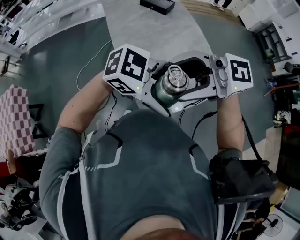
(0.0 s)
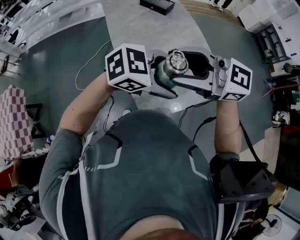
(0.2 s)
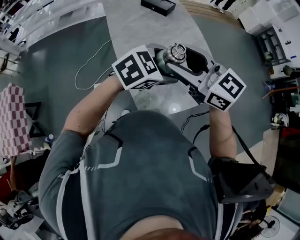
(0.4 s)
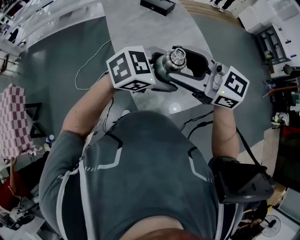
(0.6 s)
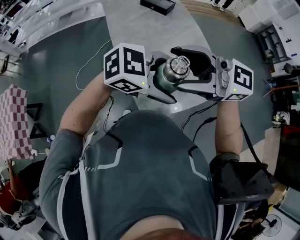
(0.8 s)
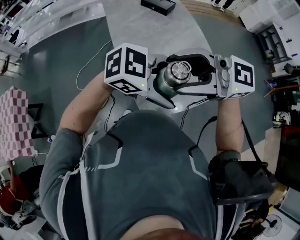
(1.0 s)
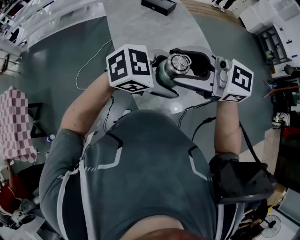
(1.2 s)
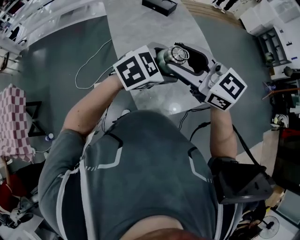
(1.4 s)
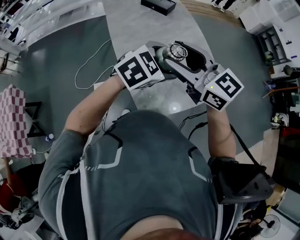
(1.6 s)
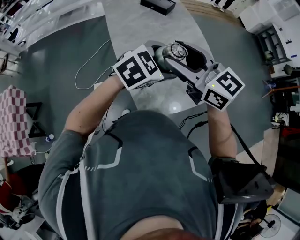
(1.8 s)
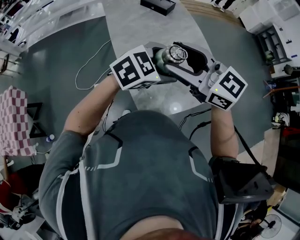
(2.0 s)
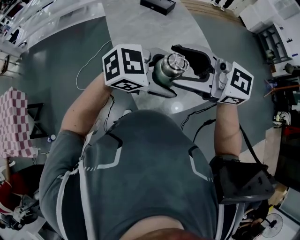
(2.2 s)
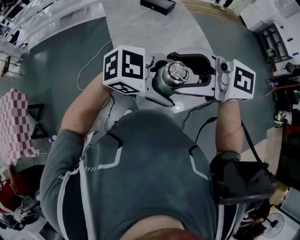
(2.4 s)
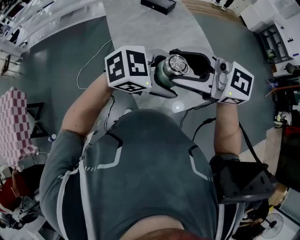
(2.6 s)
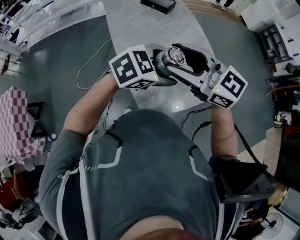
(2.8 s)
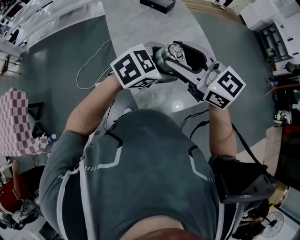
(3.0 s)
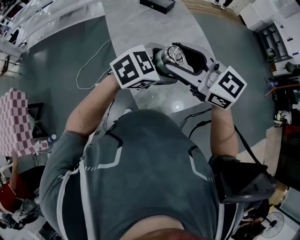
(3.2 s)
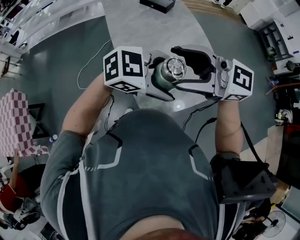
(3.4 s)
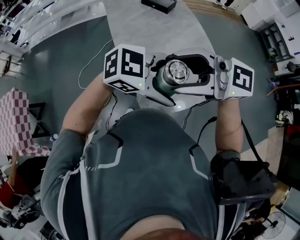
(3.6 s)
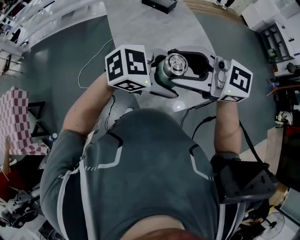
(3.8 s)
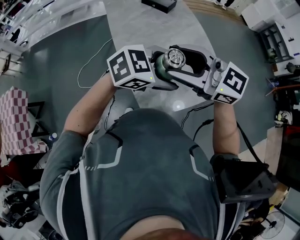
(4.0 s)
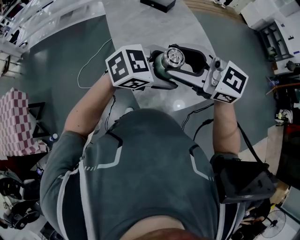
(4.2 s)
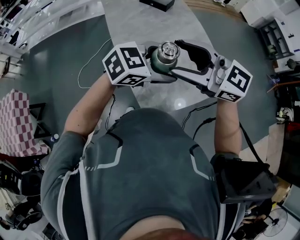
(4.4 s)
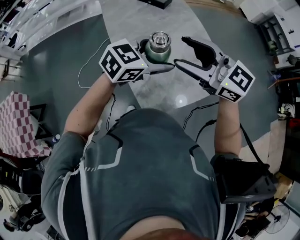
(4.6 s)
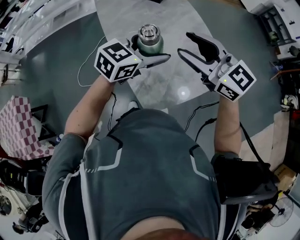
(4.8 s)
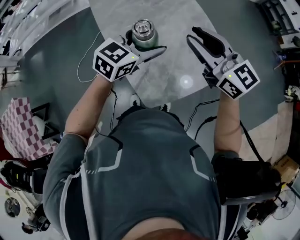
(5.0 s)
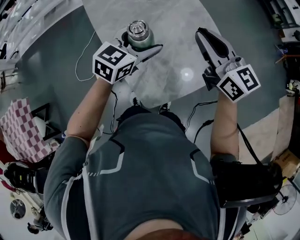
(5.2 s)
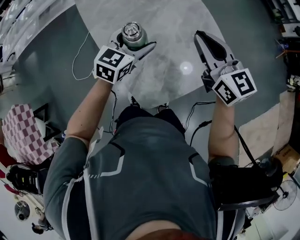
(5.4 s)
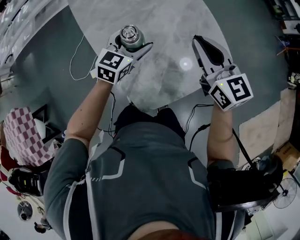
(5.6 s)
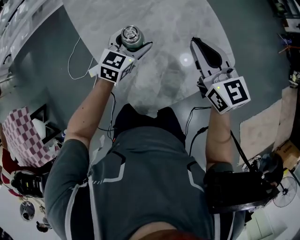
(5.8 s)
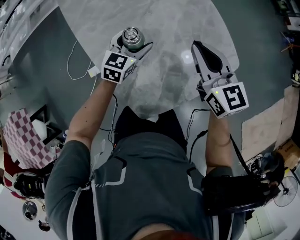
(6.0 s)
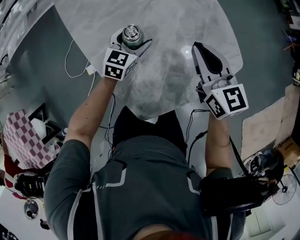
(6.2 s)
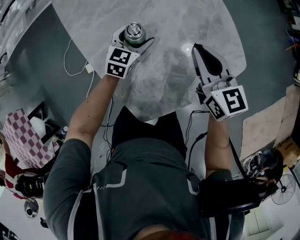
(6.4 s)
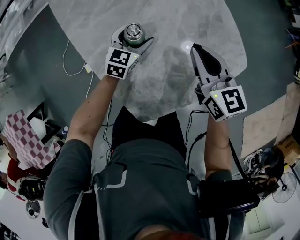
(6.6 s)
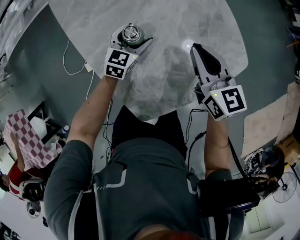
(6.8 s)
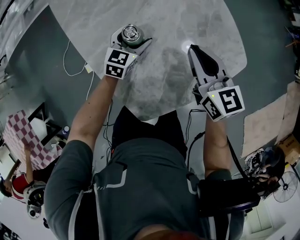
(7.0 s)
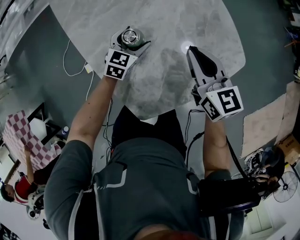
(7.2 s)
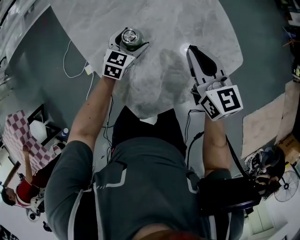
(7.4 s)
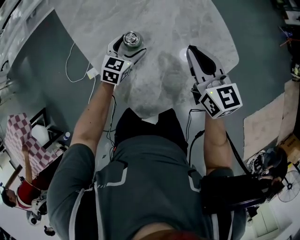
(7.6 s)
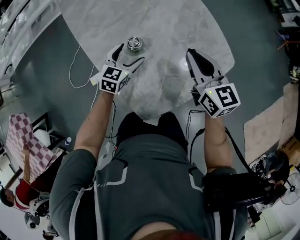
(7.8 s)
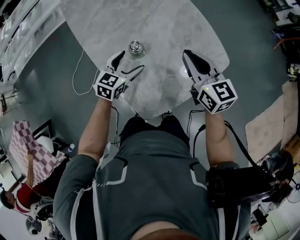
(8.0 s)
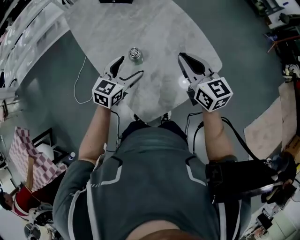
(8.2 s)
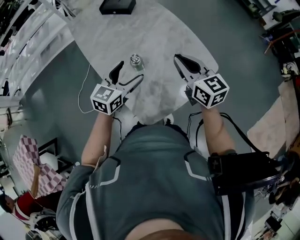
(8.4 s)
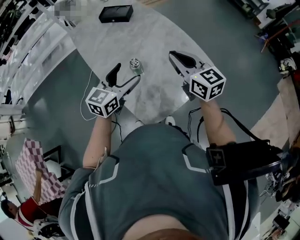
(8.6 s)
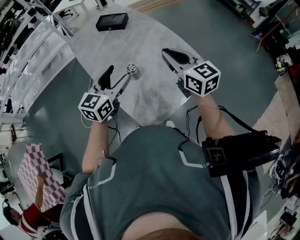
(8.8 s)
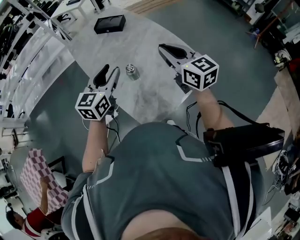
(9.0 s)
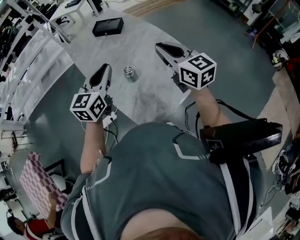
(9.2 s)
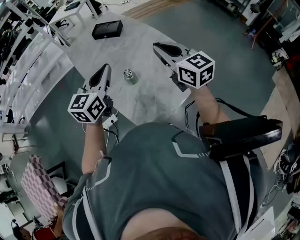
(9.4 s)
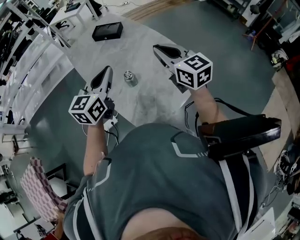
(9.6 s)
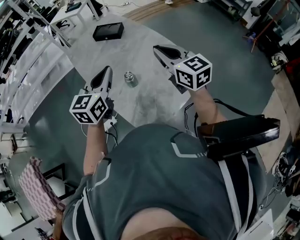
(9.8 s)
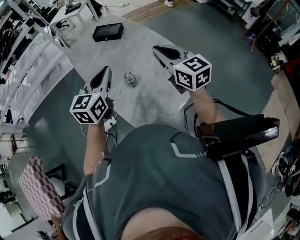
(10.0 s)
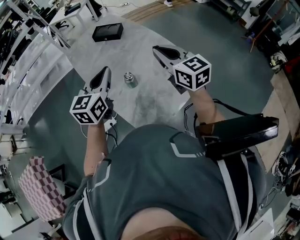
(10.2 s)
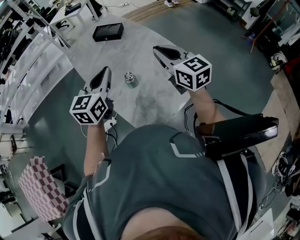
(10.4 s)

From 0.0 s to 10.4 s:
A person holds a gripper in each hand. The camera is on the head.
From 0.0 s to 1.4 s: The left gripper goes up and down, some 5 cm each way, reversing 2 times, and changes its angle by about 50 degrees. The right gripper moves roughly 10 cm, and rotates roughly 40 degrees.
From 4.4 s to 6.0 s: The right gripper ends up roughly 35 cm from where it was, changes its angle by about 50 degrees, and closes its fingers, while the left gripper goes some 30 cm downward, and turns by some 30 degrees.
From 6.0 s to 7.4 s: The grippers both shift downward by roughly 10 cm.
From 7.4 s to 9.0 s: The grippers both shift upward by about 35 cm. The left gripper changes its angle by roughly 20 degrees, and closes.
From 9.0 s to 10.4 s: The left gripper closes up.

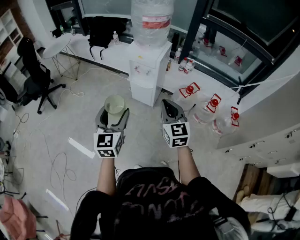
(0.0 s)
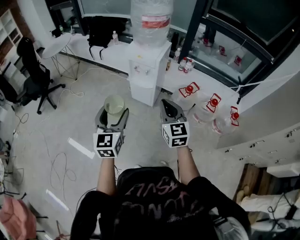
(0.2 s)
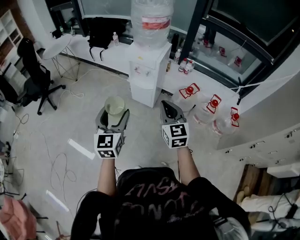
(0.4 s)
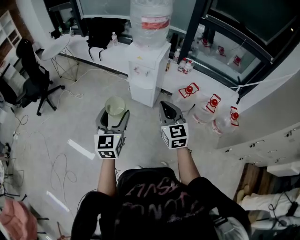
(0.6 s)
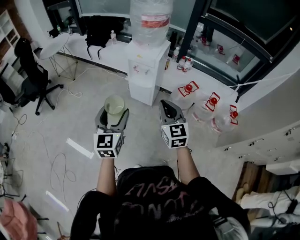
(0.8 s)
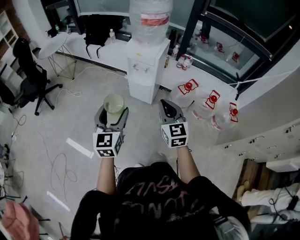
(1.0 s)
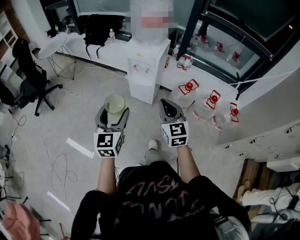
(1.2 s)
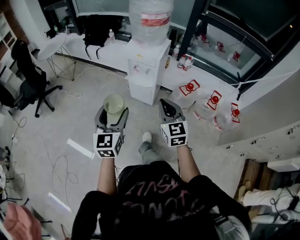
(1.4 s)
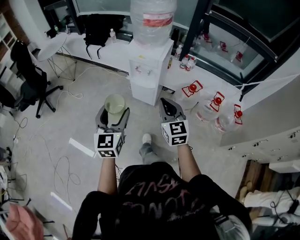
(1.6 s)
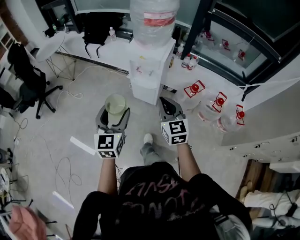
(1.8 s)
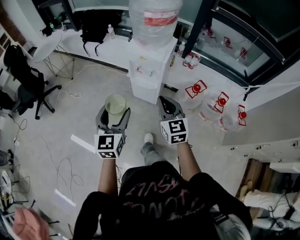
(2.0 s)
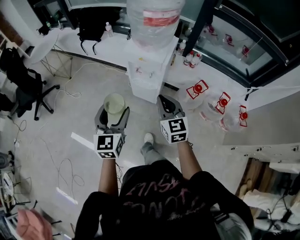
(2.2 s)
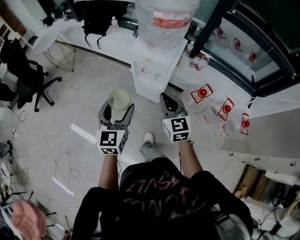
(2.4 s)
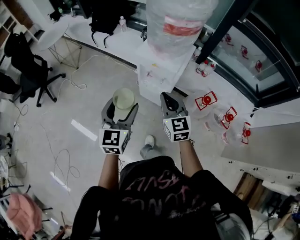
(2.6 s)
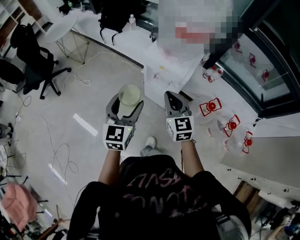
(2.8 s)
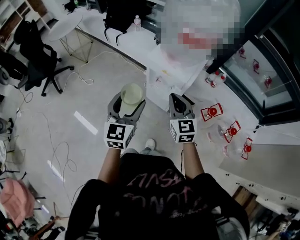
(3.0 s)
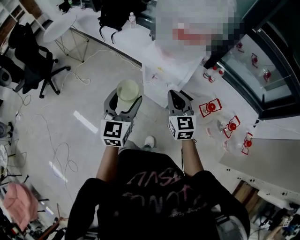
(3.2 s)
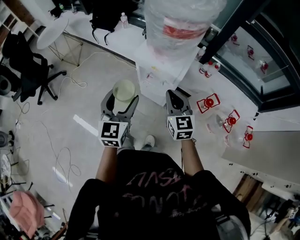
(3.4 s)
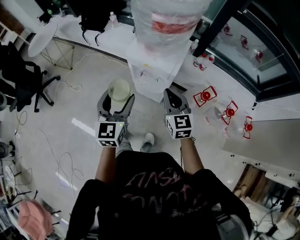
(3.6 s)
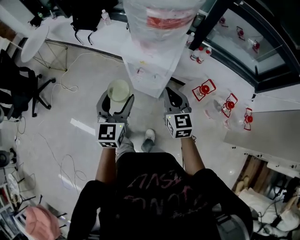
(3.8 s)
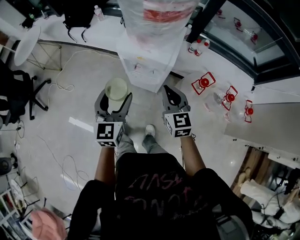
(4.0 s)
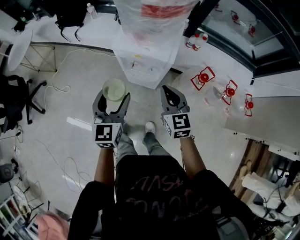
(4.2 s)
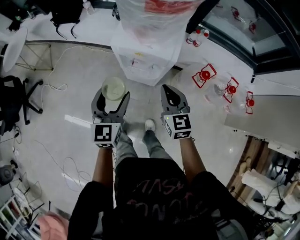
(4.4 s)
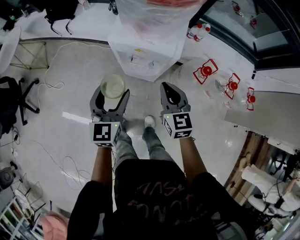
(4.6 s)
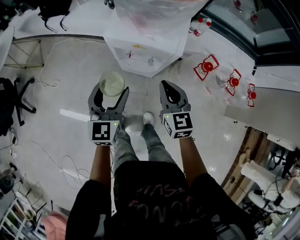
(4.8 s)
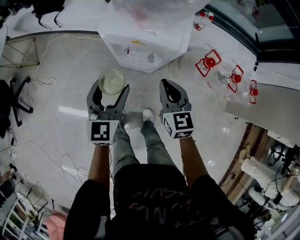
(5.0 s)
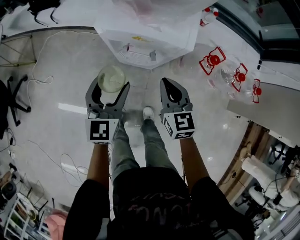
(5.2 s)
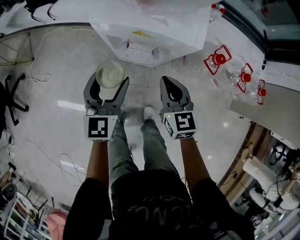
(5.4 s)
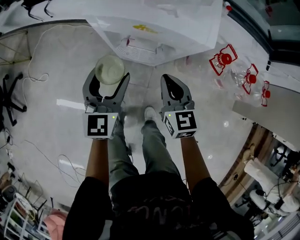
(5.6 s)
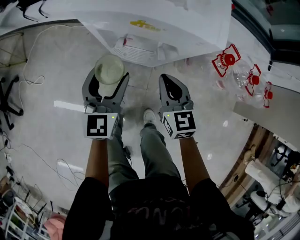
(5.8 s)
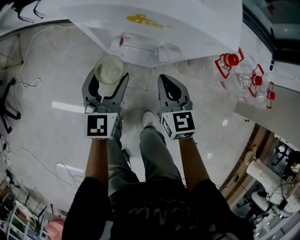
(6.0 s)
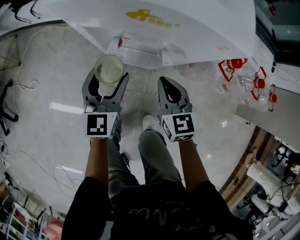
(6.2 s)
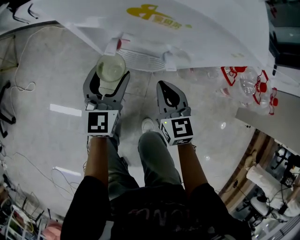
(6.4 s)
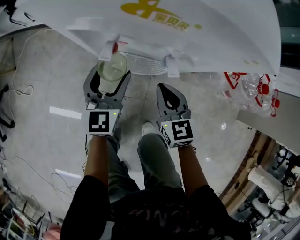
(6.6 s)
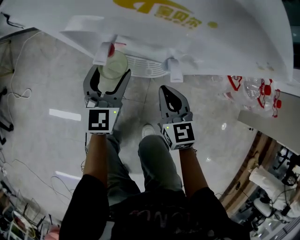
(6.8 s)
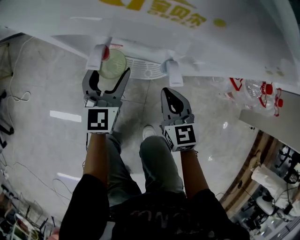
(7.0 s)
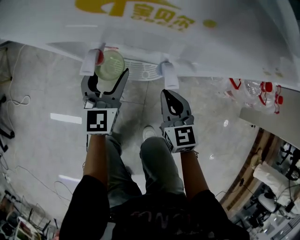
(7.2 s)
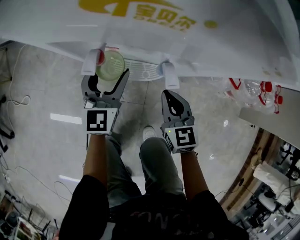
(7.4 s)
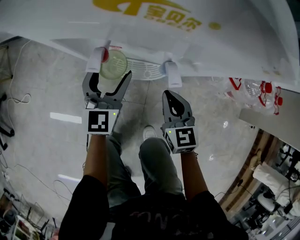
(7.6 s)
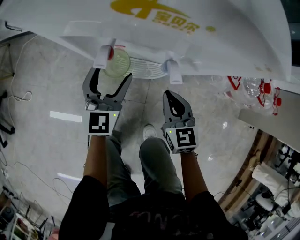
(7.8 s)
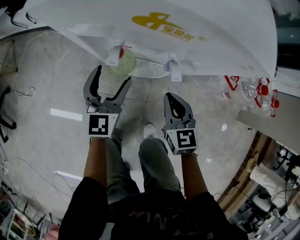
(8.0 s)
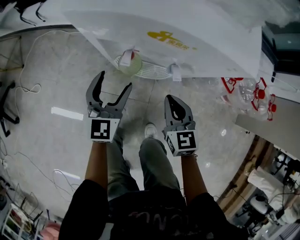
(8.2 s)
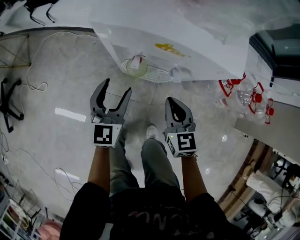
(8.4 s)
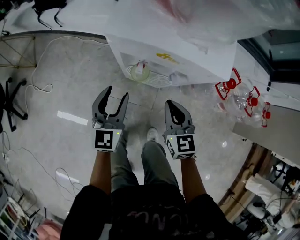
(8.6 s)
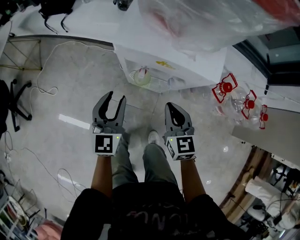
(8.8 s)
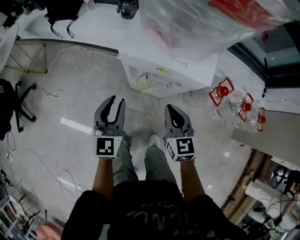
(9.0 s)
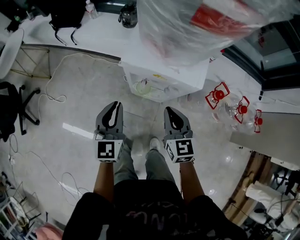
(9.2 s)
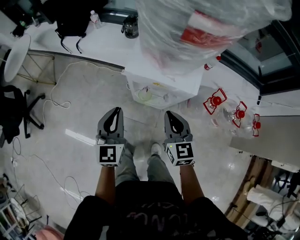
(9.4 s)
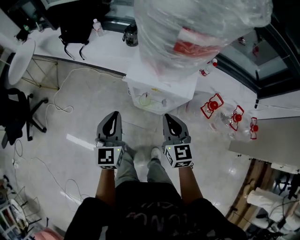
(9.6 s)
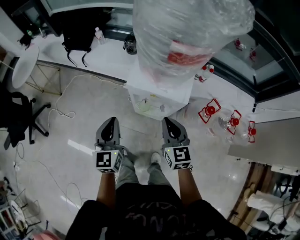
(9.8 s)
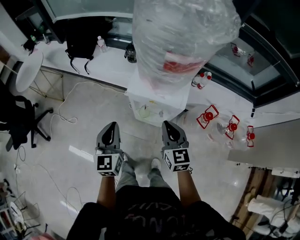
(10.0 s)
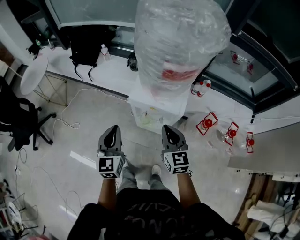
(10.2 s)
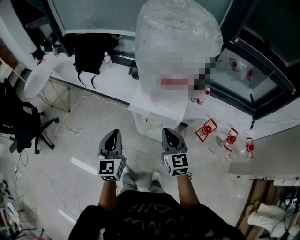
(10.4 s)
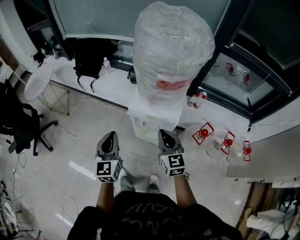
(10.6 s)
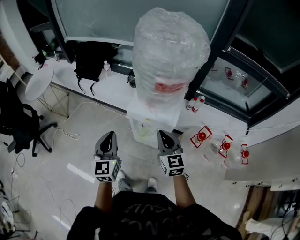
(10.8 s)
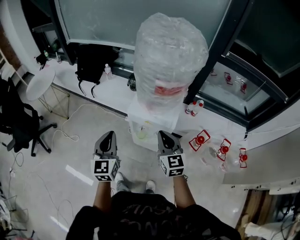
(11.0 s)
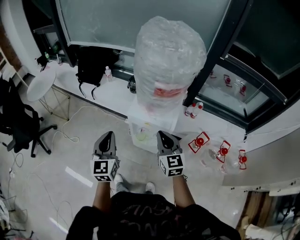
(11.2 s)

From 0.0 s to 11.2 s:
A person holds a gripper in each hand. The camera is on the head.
From 0.0 s to 1.6 s: The grippers both shift forward by approximately 5 cm.
From 1.6 s to 3.2 s: Both grippers travel together forward, approximately 30 cm.
From 3.2 s to 4.8 s: The left gripper moves downward and forward, some 20 cm, while the right gripper is displaced downward by roughly 15 cm.
From 4.8 s to 6.4 s: The two grippers go approximately 30 cm downward.
From 8.0 s to 9.6 s: The grippers both shift upward by approximately 35 cm. The left gripper closes.
From 9.6 s to 11.2 s: The grippers both shift upward by approximately 15 cm.

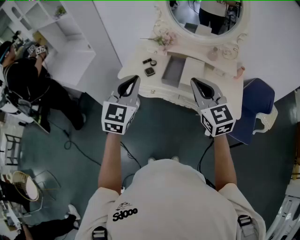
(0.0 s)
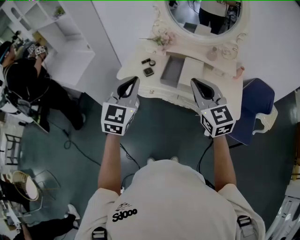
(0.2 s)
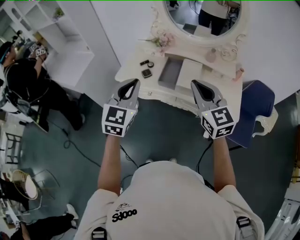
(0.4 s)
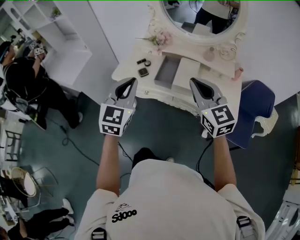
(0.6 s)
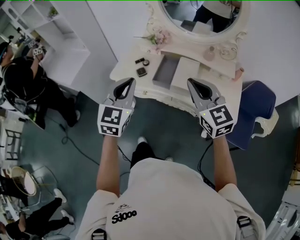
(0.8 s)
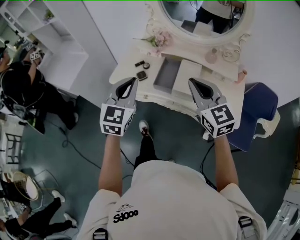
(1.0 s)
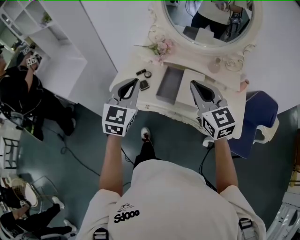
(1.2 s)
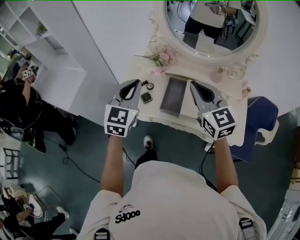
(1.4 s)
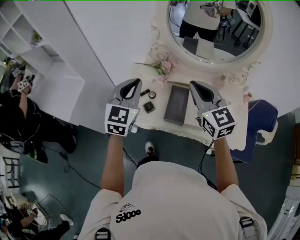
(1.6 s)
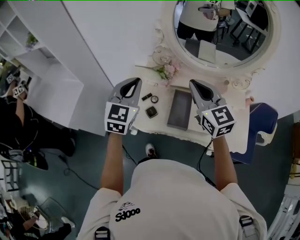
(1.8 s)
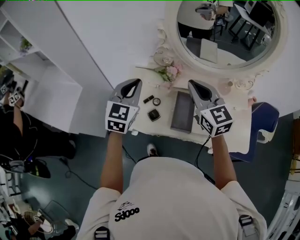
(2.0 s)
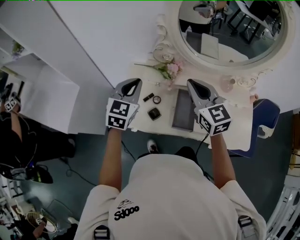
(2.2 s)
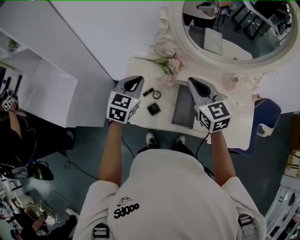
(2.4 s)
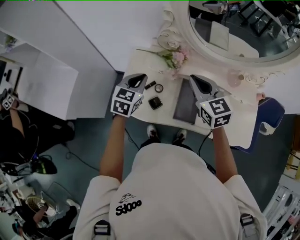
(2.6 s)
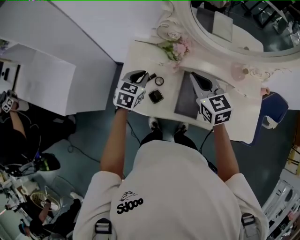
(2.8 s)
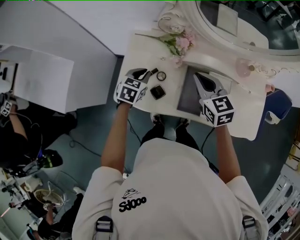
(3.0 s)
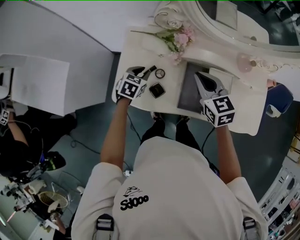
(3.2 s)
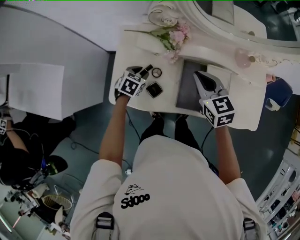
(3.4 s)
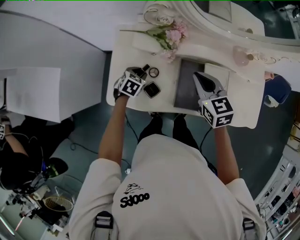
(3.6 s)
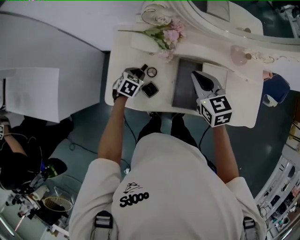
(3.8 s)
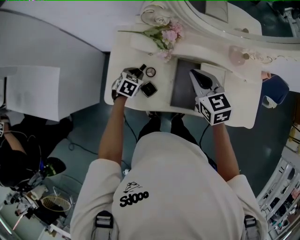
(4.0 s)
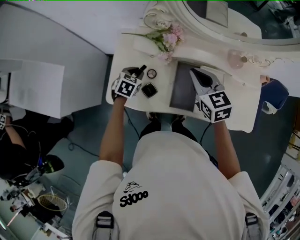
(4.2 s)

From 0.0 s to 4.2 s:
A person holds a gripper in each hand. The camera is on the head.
From 0.0 s to 1.4 s: Both grippers move forward, some 20 cm.
From 1.4 s to 2.8 s: The left gripper shifts about 30 cm downward and forward, and changes its angle by roughly 30 degrees, while the right gripper moves forward and downward, roughly 20 cm, and changes its angle by about 20 degrees.
From 2.8 s to 4.2 s: The left gripper travels downward by some 10 cm.
